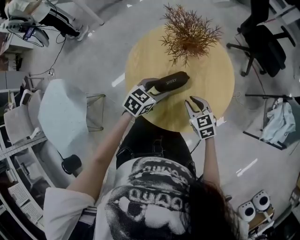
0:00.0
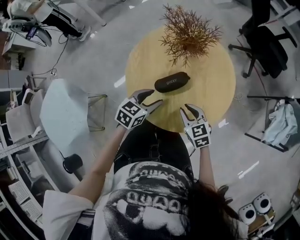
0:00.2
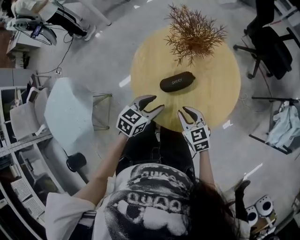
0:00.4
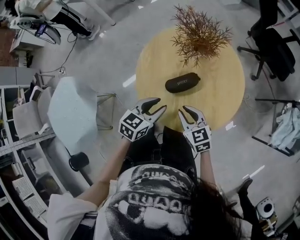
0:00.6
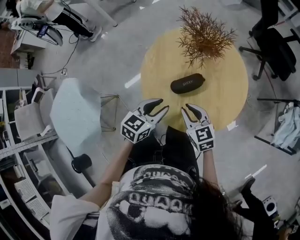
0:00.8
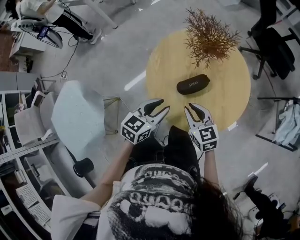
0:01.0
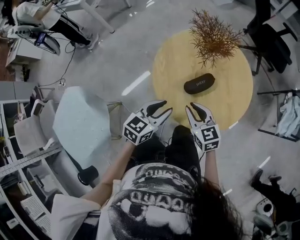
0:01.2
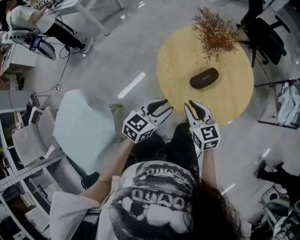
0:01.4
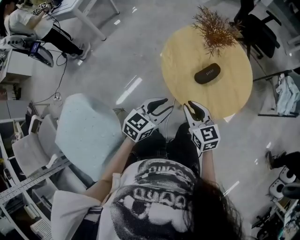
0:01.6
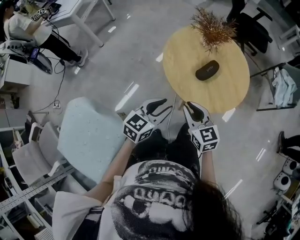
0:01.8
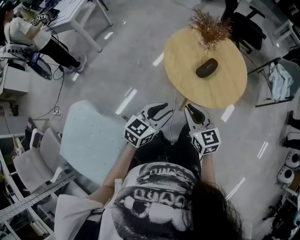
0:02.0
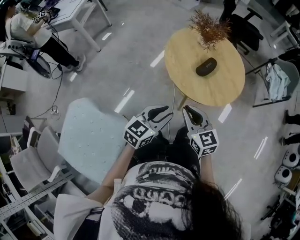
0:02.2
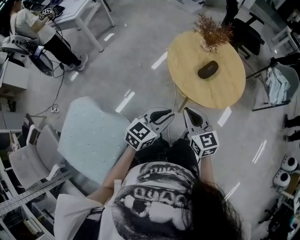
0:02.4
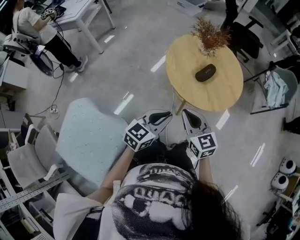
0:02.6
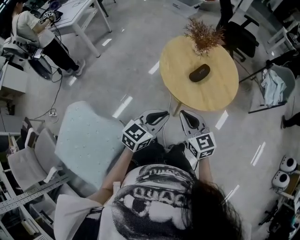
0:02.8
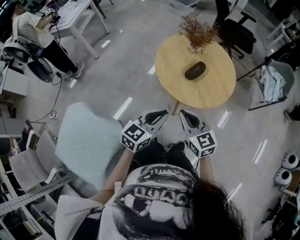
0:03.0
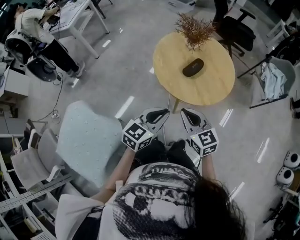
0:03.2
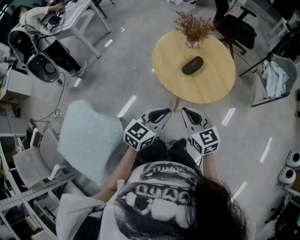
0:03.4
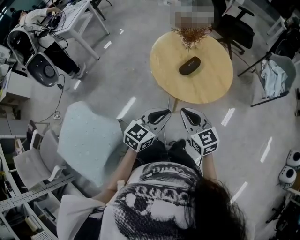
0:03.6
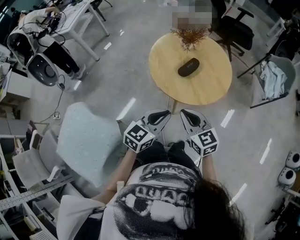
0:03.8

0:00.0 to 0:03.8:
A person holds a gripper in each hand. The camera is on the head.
0:00.0 to 0:01.2: The left gripper moves to the left, backward and upward, roughly 15 cm, and closes up; the right gripper travels to the left and upward by approximately 15 cm.
0:01.2 to 0:02.6: The two grippers go some 20 cm backward, to the left and upward. The left gripper turns by about 20 degrees, and closes up.
0:02.6 to 0:03.8: Both grippers move to the right, approximately 10 cm.

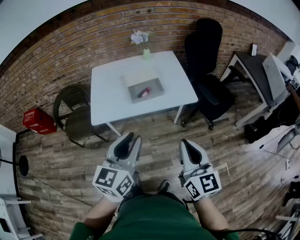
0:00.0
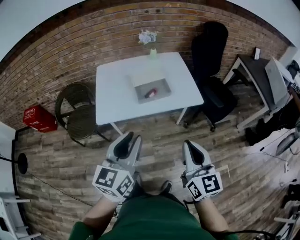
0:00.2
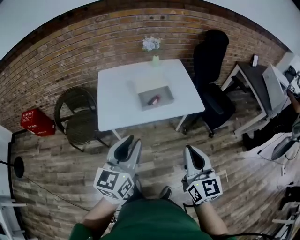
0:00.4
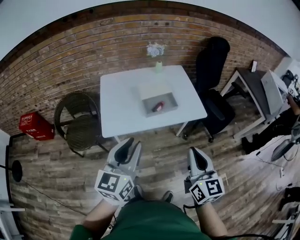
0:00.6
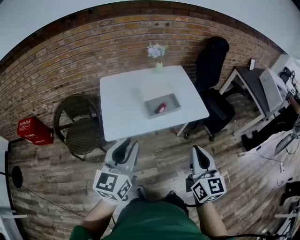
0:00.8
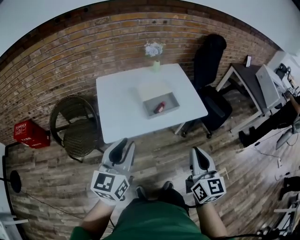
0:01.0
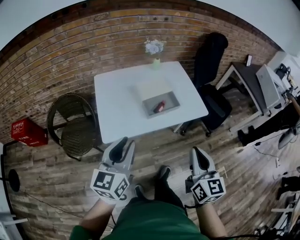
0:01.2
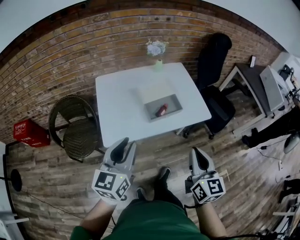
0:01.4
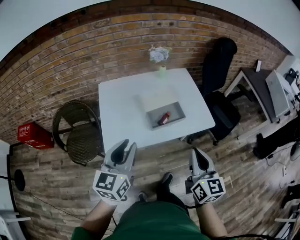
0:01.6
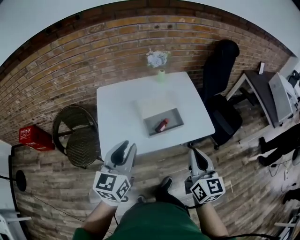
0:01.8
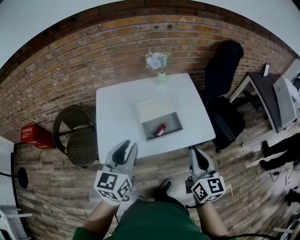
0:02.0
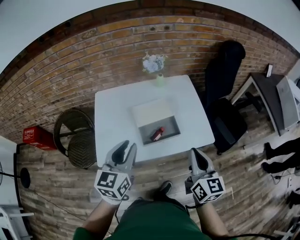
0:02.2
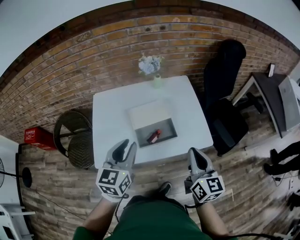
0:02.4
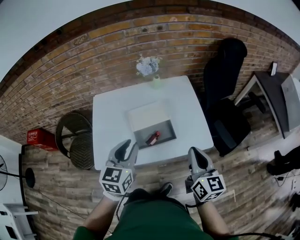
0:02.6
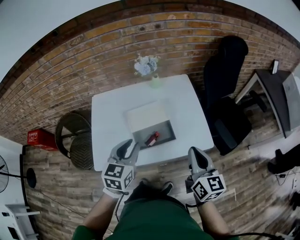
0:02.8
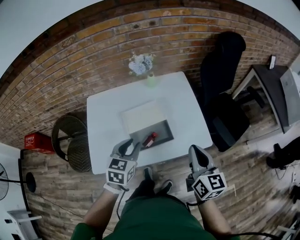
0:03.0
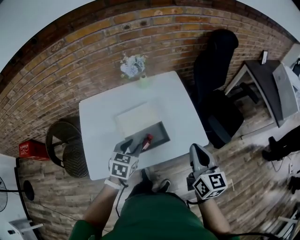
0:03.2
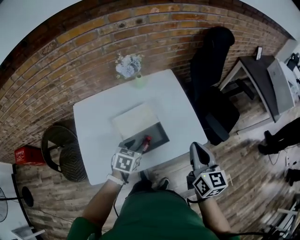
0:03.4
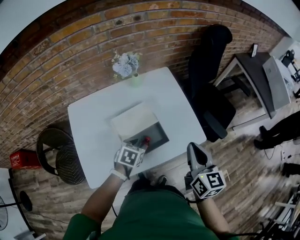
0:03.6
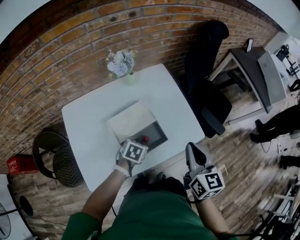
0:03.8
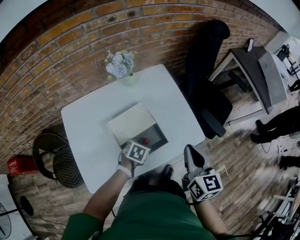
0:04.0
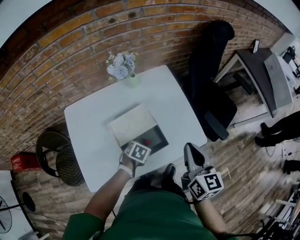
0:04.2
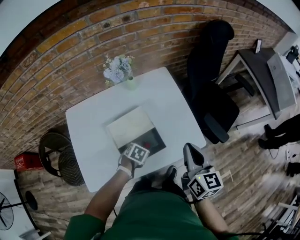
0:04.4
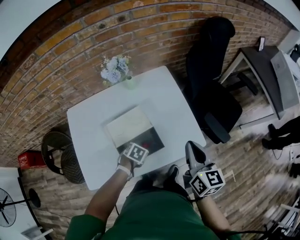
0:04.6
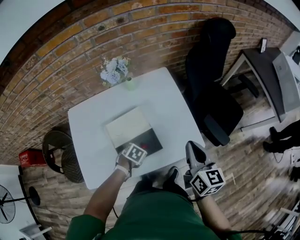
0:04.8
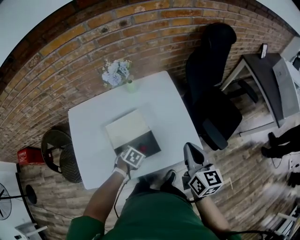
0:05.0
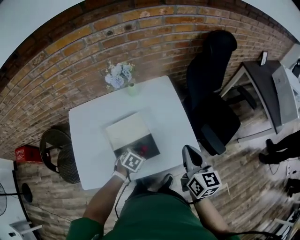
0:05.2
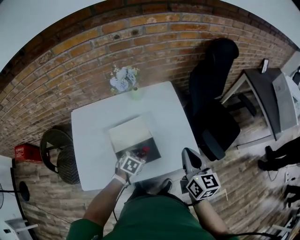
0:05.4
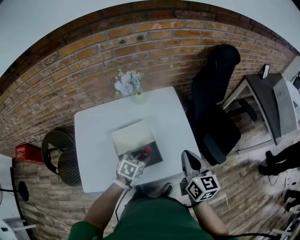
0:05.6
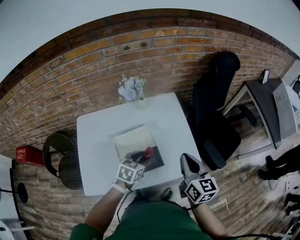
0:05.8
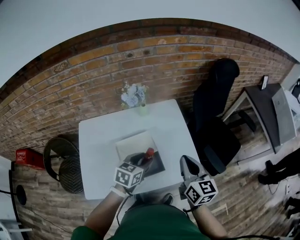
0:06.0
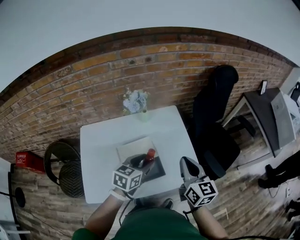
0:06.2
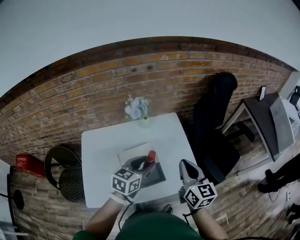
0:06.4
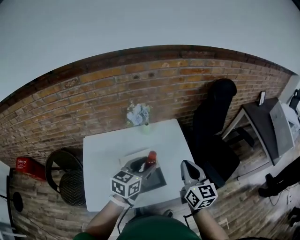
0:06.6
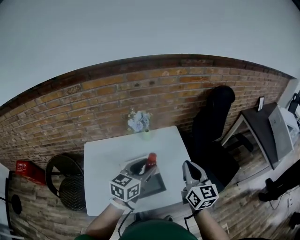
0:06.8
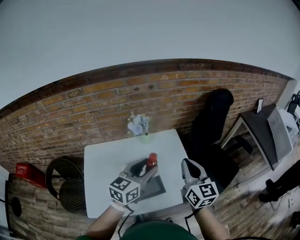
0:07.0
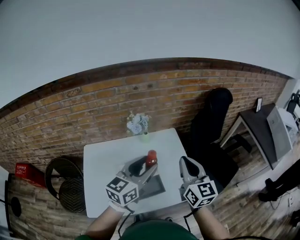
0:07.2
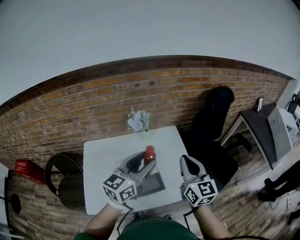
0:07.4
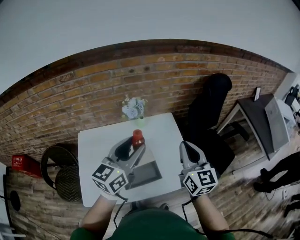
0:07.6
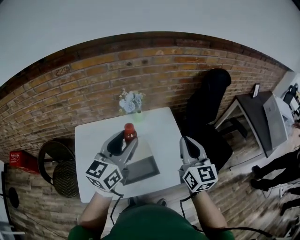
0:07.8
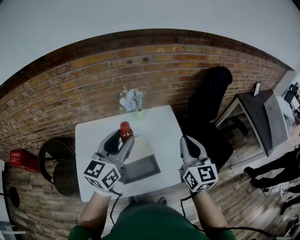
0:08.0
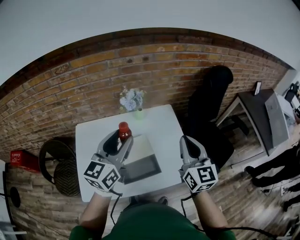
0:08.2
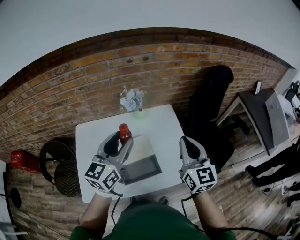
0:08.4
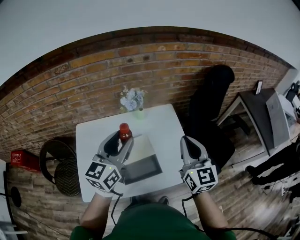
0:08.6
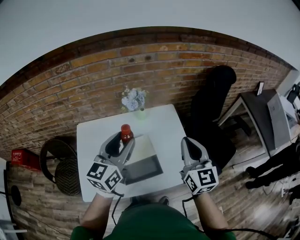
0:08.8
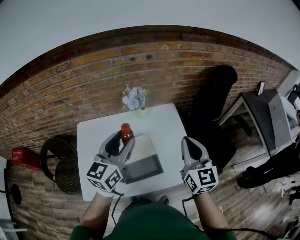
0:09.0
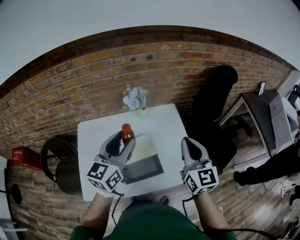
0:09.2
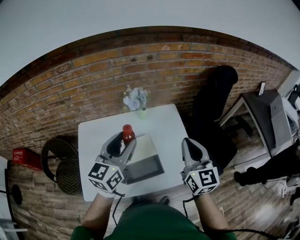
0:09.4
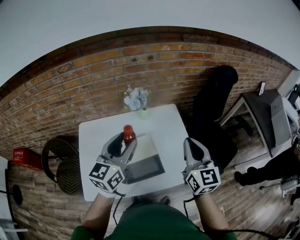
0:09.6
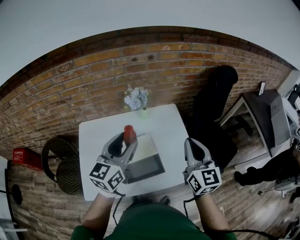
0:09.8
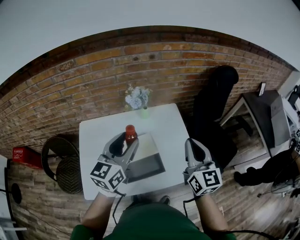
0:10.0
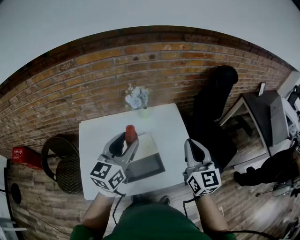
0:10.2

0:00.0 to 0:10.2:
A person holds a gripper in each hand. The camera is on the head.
0:00.0 to 0:01.4: Both grippers travel together to the left and forward, some 20 cm.
0:01.4 to 0:03.0: The right gripper heads forward and to the right, covering about 30 cm, while the left gripper travels forward, to the right and downward by approximately 30 cm, and swivels some 30 degrees.
0:03.0 to 0:04.4: The left gripper moves downward, some 25 cm, angles its fingers downward, by approximately 40 degrees, and opens its fingers, while the right gripper changes place by about 10 cm.
0:04.4 to 0:05.8: The left gripper moves upward, approximately 15 cm, and angles its fingers upward, by some 30 degrees.
0:05.8 to 0:07.2: The right gripper moves upward, approximately 15 cm. Meanwhile the left gripper goes about 25 cm upward, and tilts its fingers roughly 40 degrees upward.
0:07.2 to 0:08.8: The left gripper travels to the left by roughly 10 cm.
0:08.8 to 0:10.2: There are only small adjustments of the grippers.

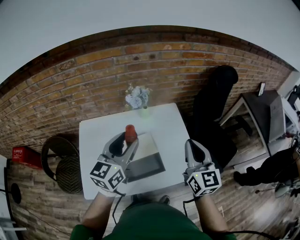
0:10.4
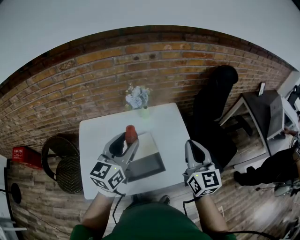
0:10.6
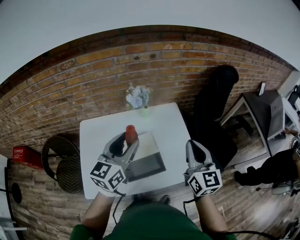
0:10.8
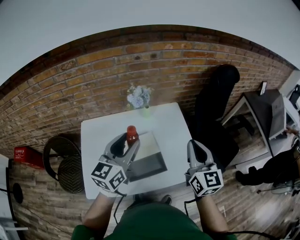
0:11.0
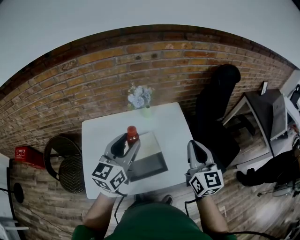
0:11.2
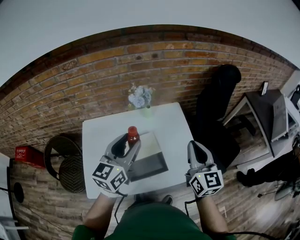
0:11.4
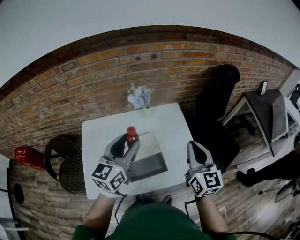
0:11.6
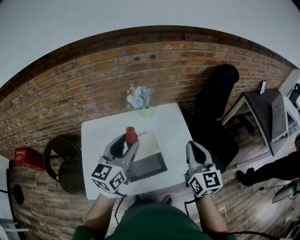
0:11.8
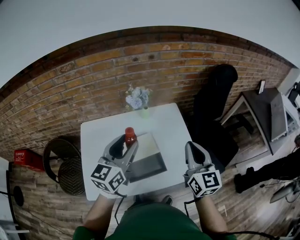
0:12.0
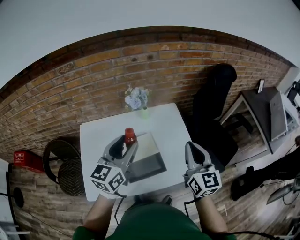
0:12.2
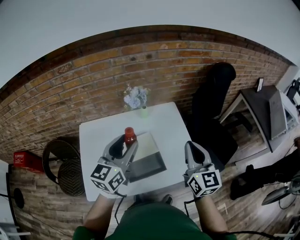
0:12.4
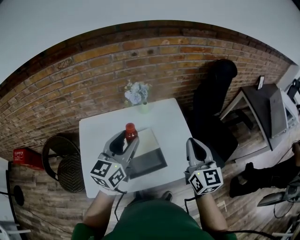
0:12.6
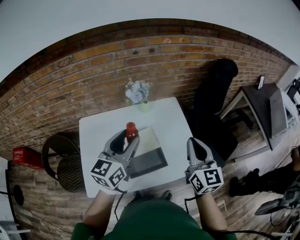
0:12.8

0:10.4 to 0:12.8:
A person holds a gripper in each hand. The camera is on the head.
0:10.4 to 0:11.6: Neither gripper changes place.
0:11.6 to 0:12.8: Both grippers stay put.

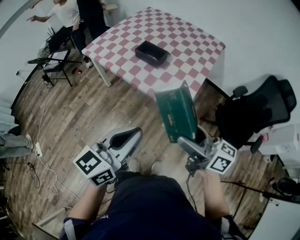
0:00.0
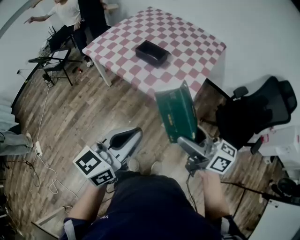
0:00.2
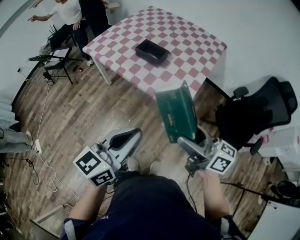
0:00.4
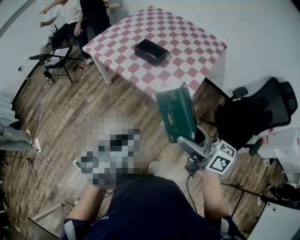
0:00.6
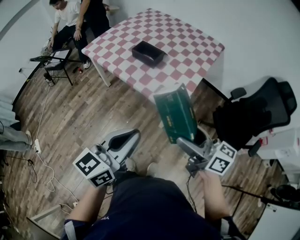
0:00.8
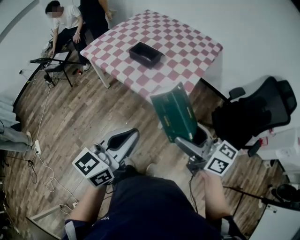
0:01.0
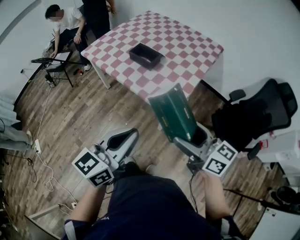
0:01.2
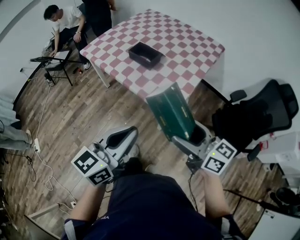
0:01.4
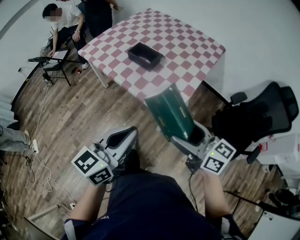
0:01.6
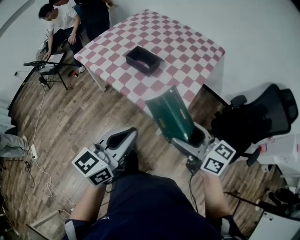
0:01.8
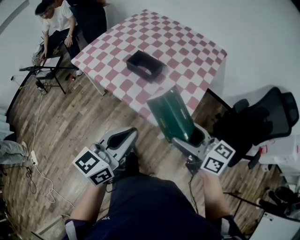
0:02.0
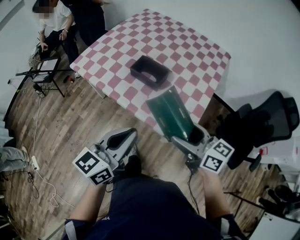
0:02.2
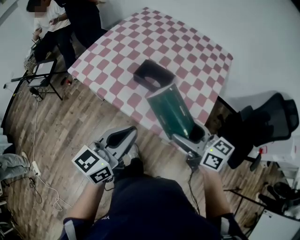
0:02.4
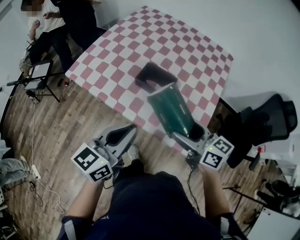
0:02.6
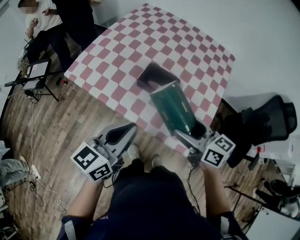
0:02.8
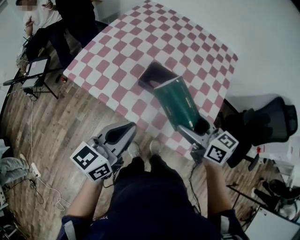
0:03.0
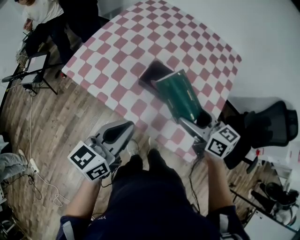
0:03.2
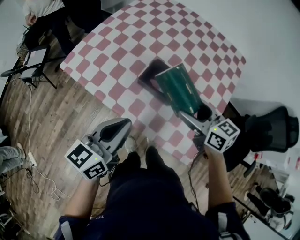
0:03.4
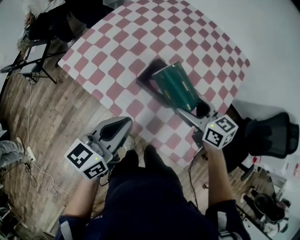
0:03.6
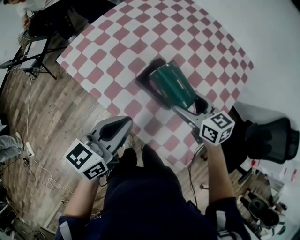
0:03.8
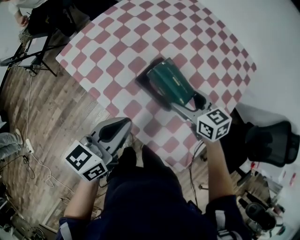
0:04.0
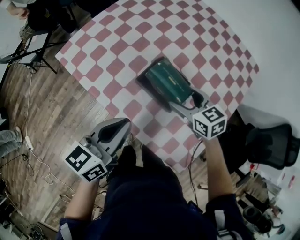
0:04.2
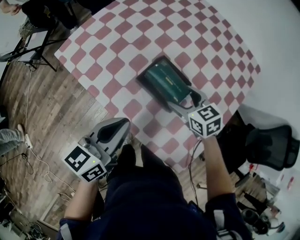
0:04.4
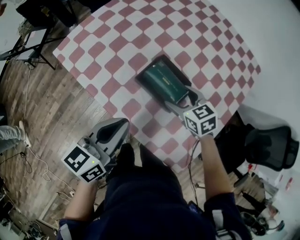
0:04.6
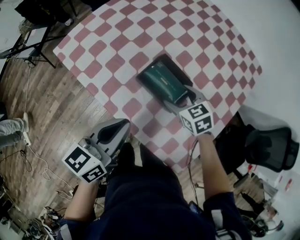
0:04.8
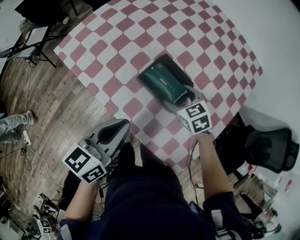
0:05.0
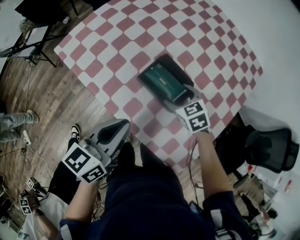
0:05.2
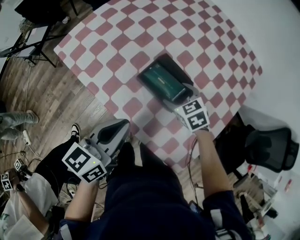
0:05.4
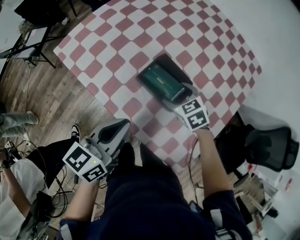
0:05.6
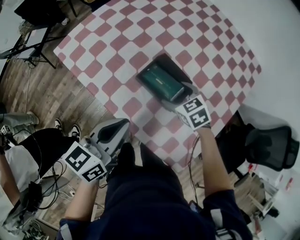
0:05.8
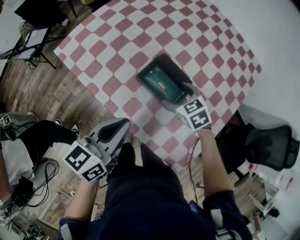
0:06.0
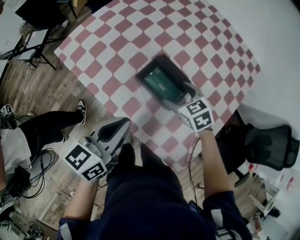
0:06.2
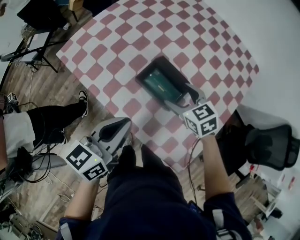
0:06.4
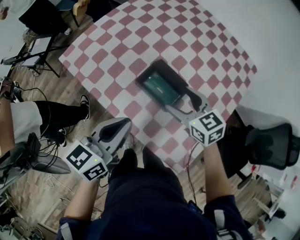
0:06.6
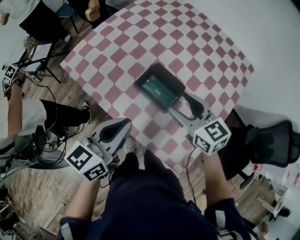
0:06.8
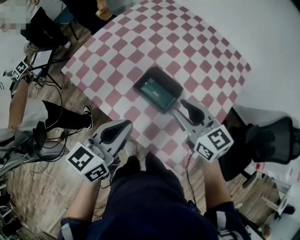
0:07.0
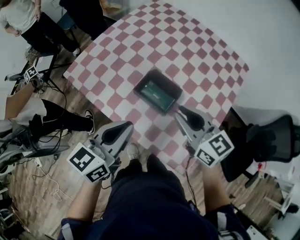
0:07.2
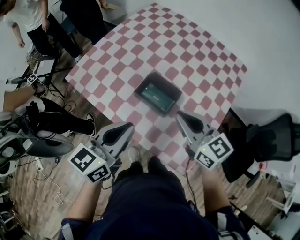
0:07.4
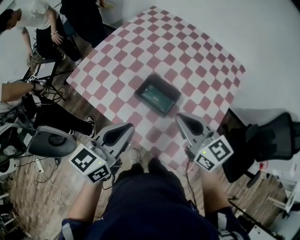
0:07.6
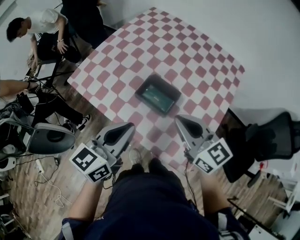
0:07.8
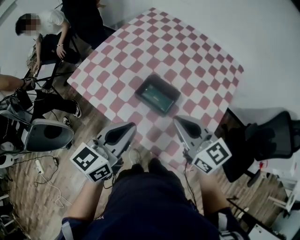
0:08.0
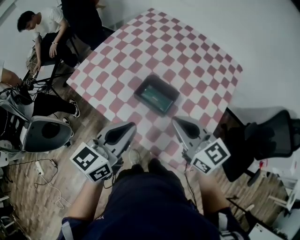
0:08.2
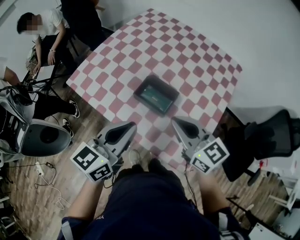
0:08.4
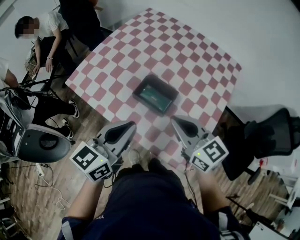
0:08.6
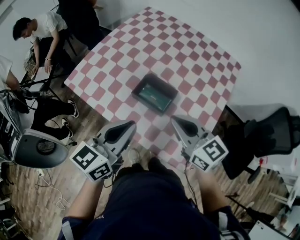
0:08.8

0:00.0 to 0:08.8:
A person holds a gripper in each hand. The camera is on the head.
0:00.0 to 0:01.4: The two grippers go approximately 5 cm to the right.
0:01.4 to 0:03.0: The right gripper heads forward, covering about 35 cm. Meanwhile the left gripper travels forward and to the left by roughly 40 cm.
0:03.0 to 0:04.4: The left gripper travels forward and downward by roughly 10 cm. The right gripper moves forward and downward, about 25 cm, and swivels roughly 30 degrees.
0:04.4 to 0:05.8: The right gripper goes some 5 cm downward.
0:05.8 to 0:07.4: The right gripper shifts some 25 cm upward, tips its fingers upward by approximately 40 degrees, and closes; the left gripper shifts approximately 10 cm upward.
0:07.4 to 0:08.8: There are only small adjustments of the grippers.
